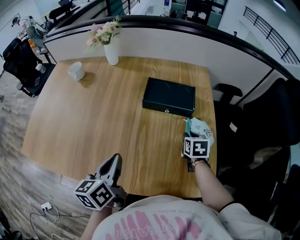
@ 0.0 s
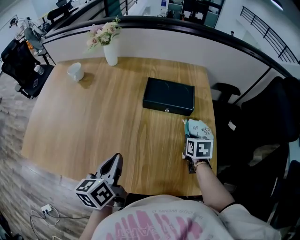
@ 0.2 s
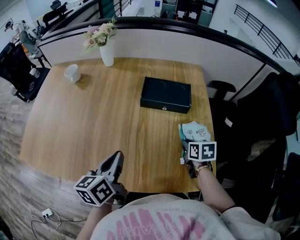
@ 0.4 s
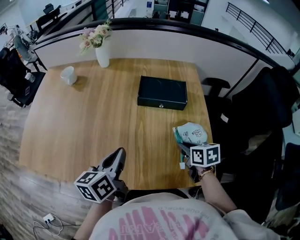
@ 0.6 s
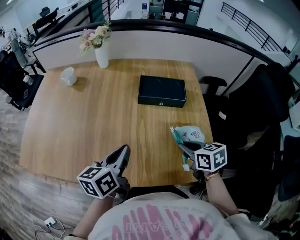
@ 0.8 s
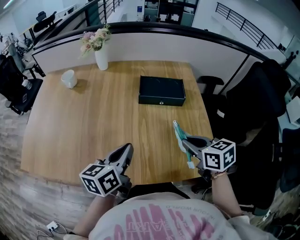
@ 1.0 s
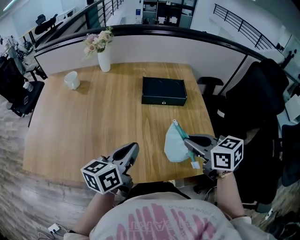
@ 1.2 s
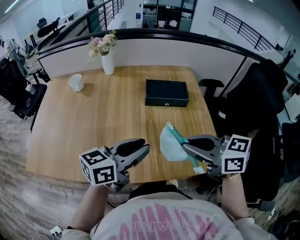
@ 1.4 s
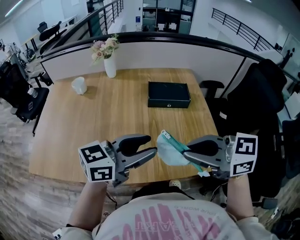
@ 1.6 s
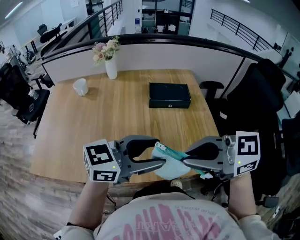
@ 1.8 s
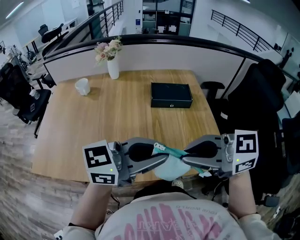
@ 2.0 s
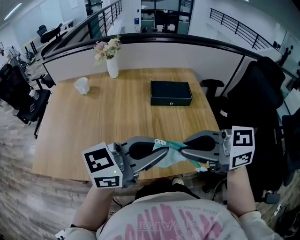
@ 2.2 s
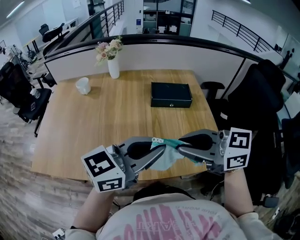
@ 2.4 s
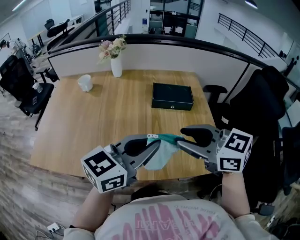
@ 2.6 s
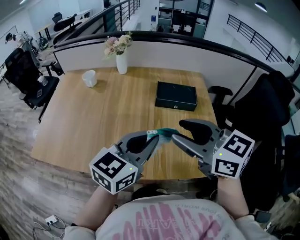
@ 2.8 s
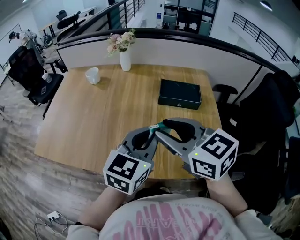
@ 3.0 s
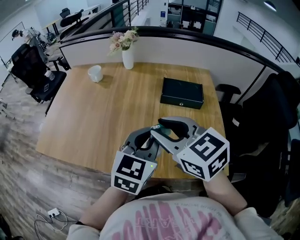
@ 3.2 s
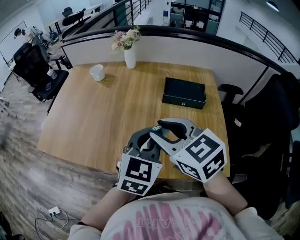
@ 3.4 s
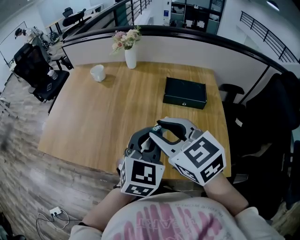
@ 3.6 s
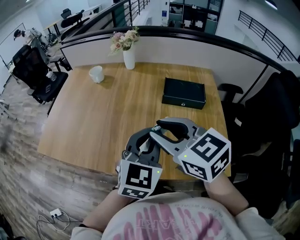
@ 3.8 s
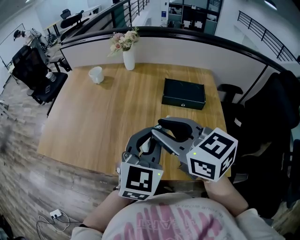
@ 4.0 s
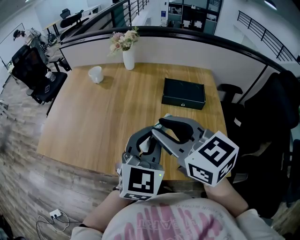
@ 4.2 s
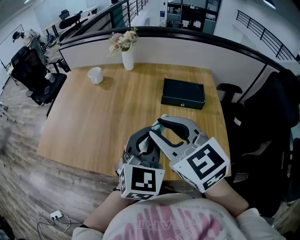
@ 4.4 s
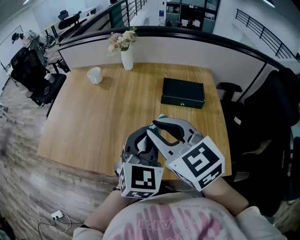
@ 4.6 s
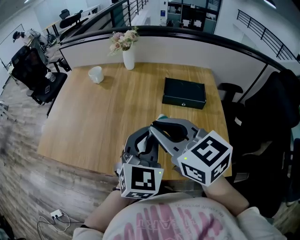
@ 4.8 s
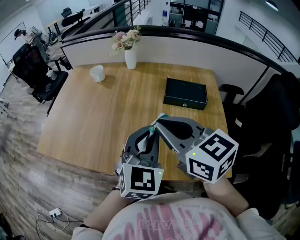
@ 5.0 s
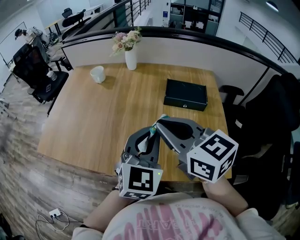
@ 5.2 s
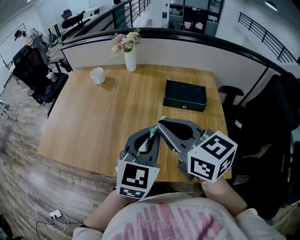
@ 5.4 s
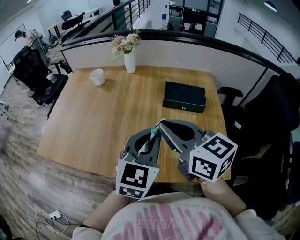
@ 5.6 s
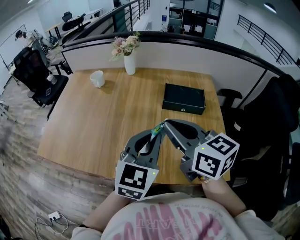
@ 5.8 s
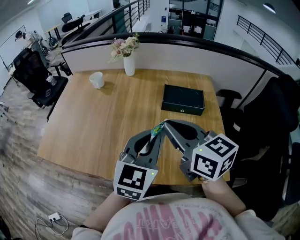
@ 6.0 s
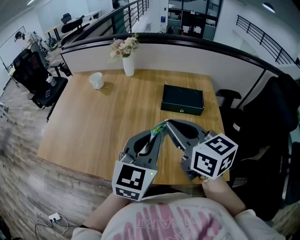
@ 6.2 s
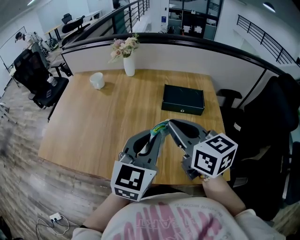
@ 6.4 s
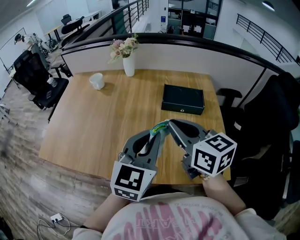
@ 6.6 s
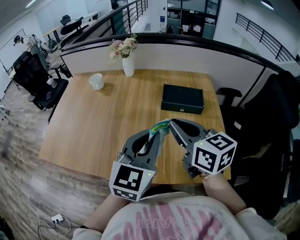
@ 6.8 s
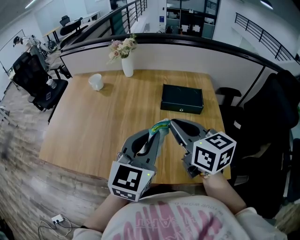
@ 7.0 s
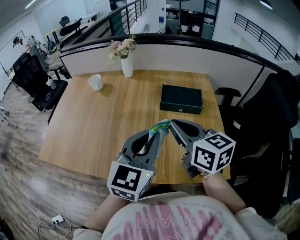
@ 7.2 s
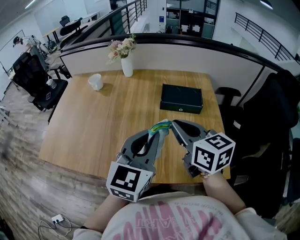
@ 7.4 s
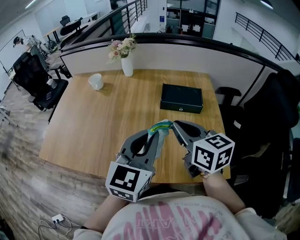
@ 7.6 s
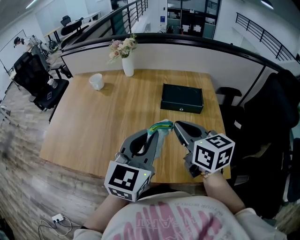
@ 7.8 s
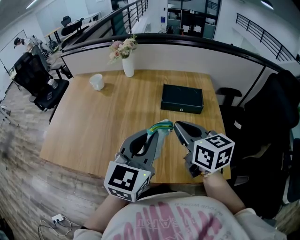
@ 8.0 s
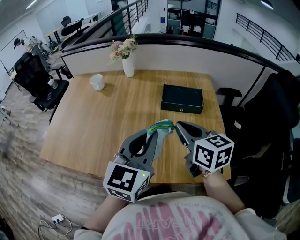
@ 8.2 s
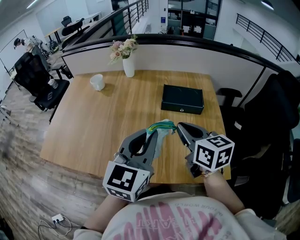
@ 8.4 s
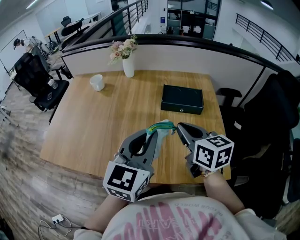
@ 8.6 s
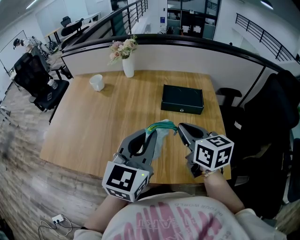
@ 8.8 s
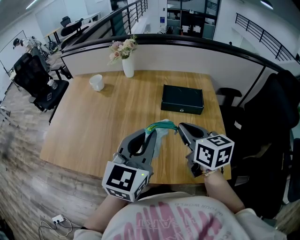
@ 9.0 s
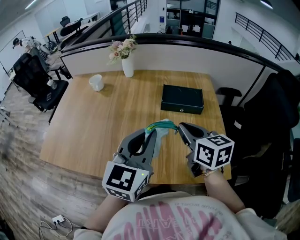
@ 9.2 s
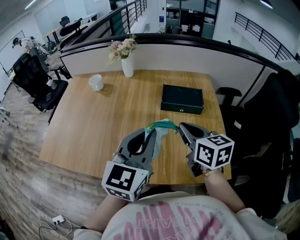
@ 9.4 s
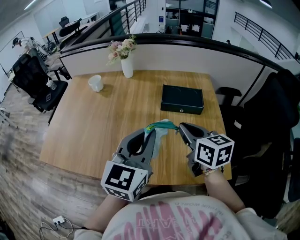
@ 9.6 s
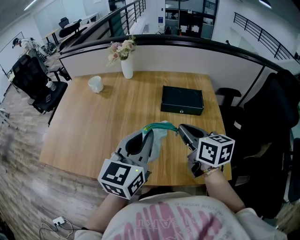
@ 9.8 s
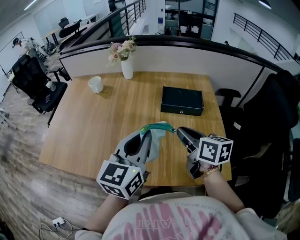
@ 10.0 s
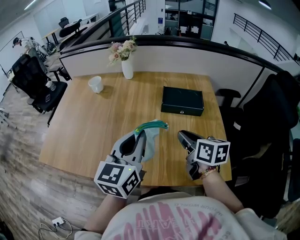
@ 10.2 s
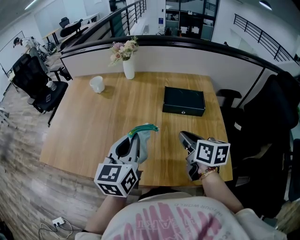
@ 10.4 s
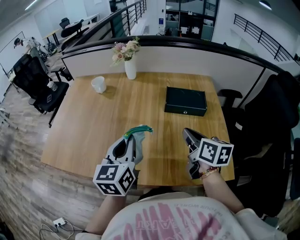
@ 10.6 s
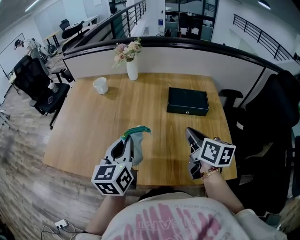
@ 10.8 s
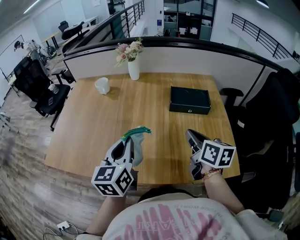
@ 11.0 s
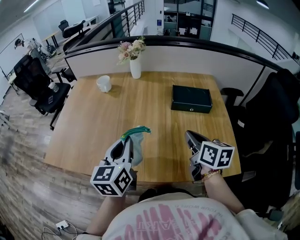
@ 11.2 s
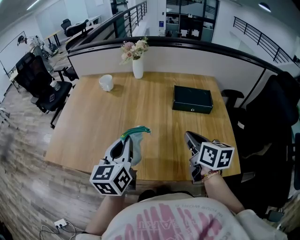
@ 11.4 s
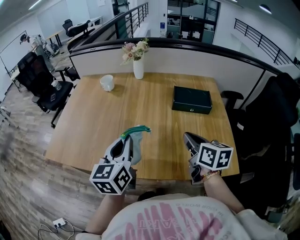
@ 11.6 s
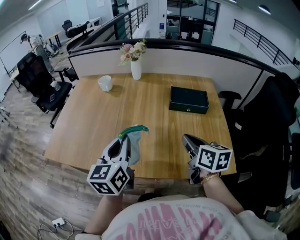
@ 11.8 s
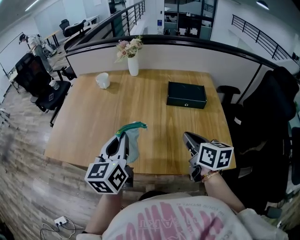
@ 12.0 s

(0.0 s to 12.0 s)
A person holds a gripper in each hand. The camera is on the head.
0.0 s - 1.6 s: The right gripper changes place by about 40 cm, and tilts its fingers some 30 degrees upward, while the left gripper heads upward, covering some 15 cm, turns by approximately 60 degrees, and opens up.
1.6 s - 3.0 s: The right gripper ends up some 10 cm from where it was, and opens its fingers, while the left gripper changes its angle by roughly 40 degrees, and closes up.
3.0 s - 4.4 s: The left gripper changes its angle by approximately 20 degrees.
4.4 s - 6.0 s: The right gripper turns by about 20 degrees, and closes up.
6.0 s - 7.6 s: The right gripper moves roughly 5 cm.
7.6 s - 9.0 s: The grippers move only a little.
9.0 s - 10.4 s: The left gripper heads to the left and downward, covering about 10 cm, while the right gripper is displaced downward by about 5 cm.
10.4 s - 12.0 s: The left gripper is displaced to the left by roughly 10 cm. The right gripper heads backward, covering about 5 cm.

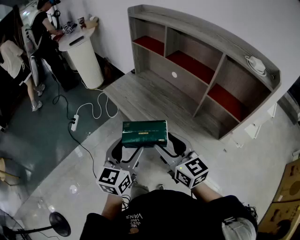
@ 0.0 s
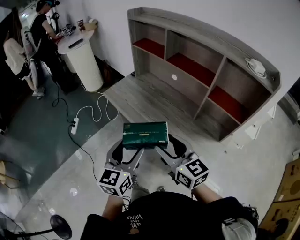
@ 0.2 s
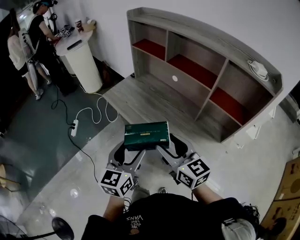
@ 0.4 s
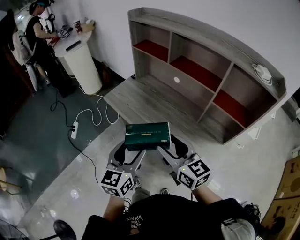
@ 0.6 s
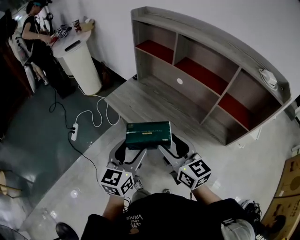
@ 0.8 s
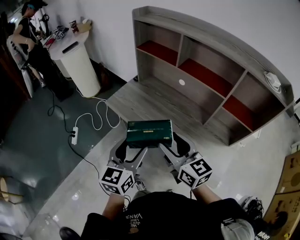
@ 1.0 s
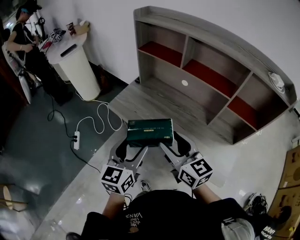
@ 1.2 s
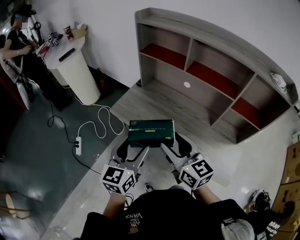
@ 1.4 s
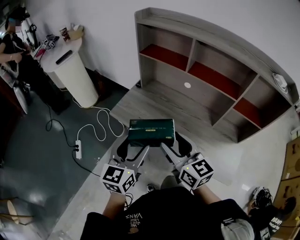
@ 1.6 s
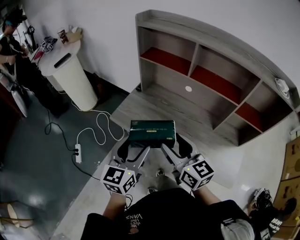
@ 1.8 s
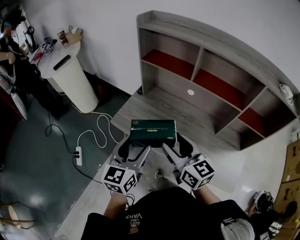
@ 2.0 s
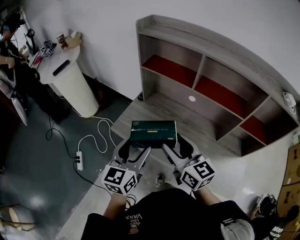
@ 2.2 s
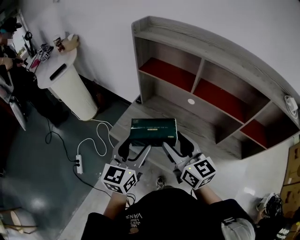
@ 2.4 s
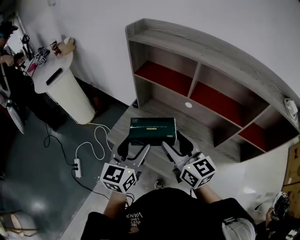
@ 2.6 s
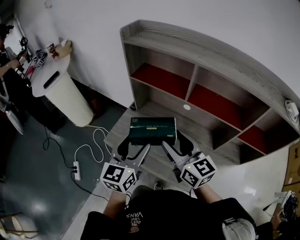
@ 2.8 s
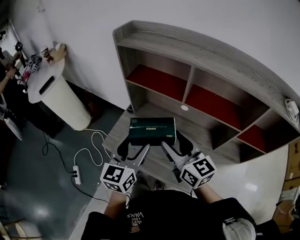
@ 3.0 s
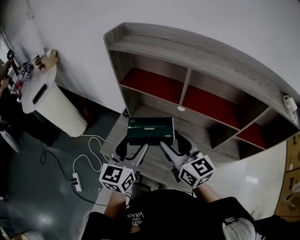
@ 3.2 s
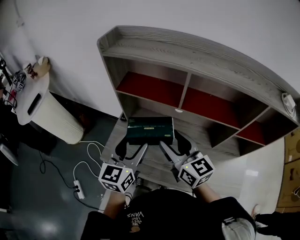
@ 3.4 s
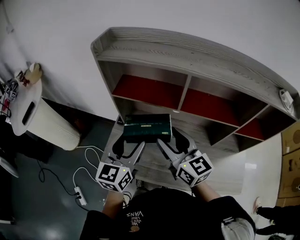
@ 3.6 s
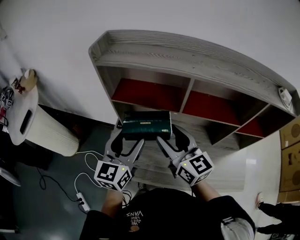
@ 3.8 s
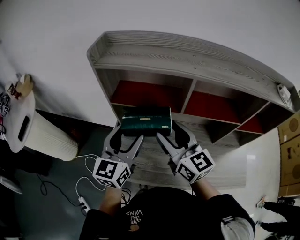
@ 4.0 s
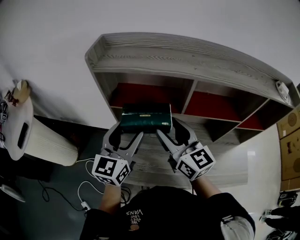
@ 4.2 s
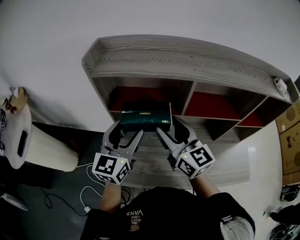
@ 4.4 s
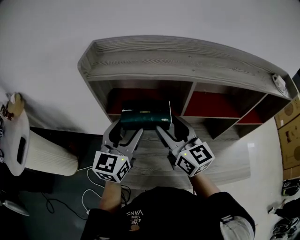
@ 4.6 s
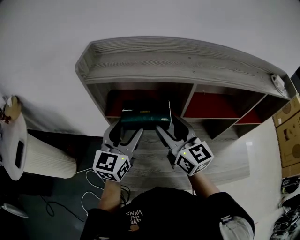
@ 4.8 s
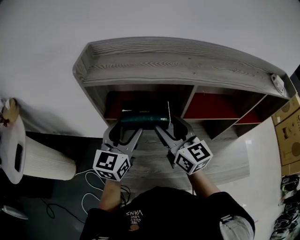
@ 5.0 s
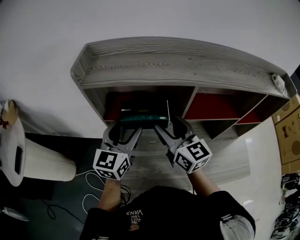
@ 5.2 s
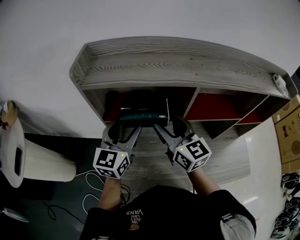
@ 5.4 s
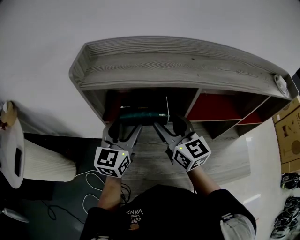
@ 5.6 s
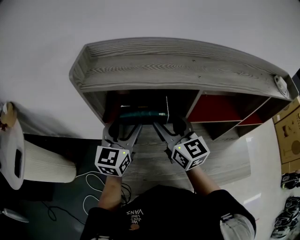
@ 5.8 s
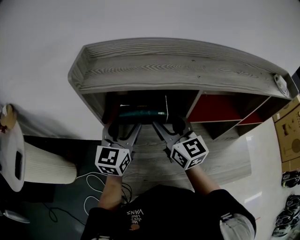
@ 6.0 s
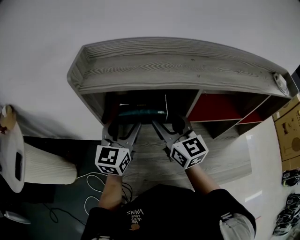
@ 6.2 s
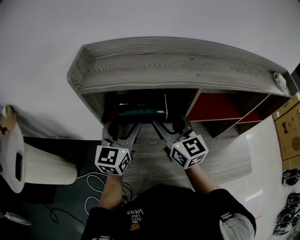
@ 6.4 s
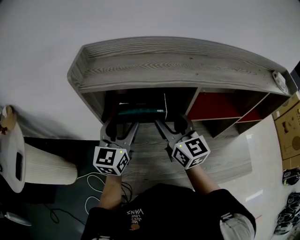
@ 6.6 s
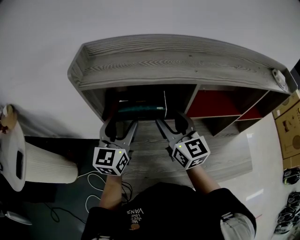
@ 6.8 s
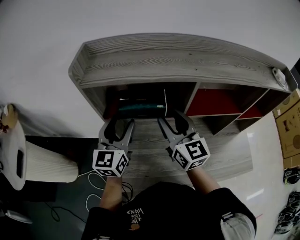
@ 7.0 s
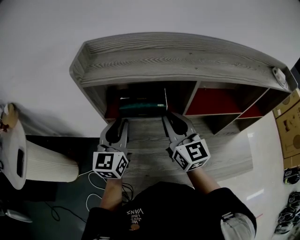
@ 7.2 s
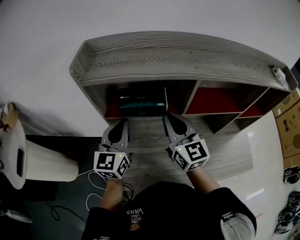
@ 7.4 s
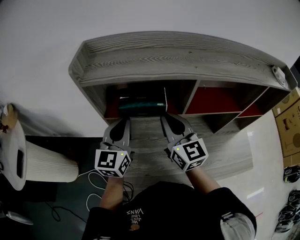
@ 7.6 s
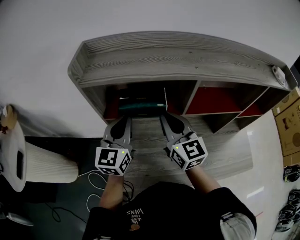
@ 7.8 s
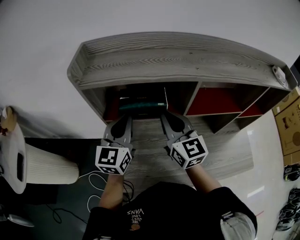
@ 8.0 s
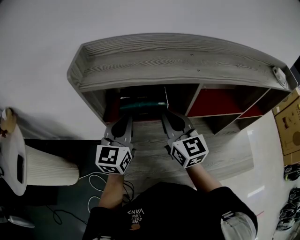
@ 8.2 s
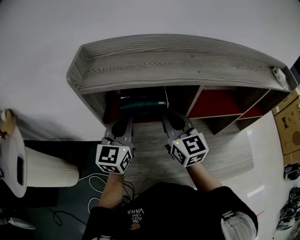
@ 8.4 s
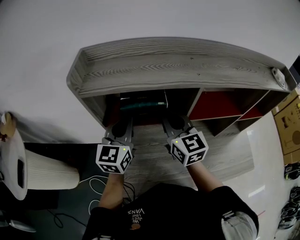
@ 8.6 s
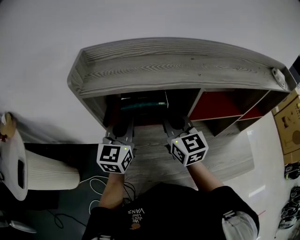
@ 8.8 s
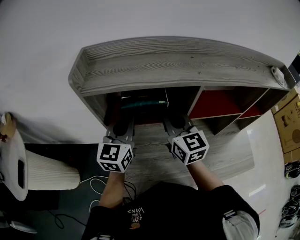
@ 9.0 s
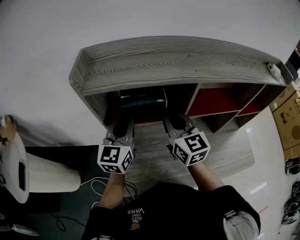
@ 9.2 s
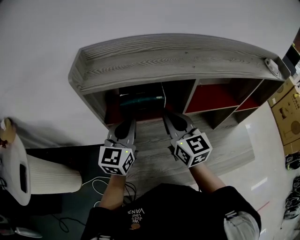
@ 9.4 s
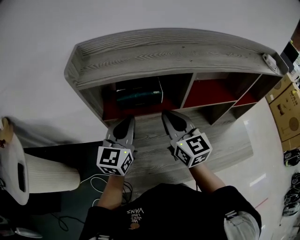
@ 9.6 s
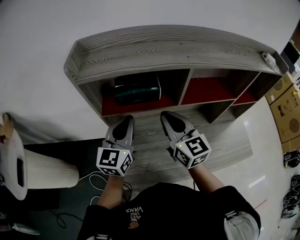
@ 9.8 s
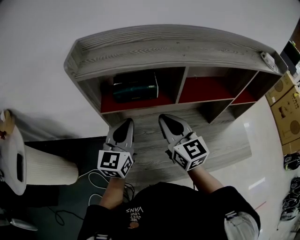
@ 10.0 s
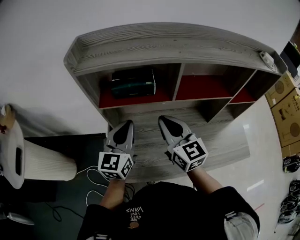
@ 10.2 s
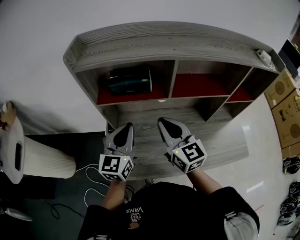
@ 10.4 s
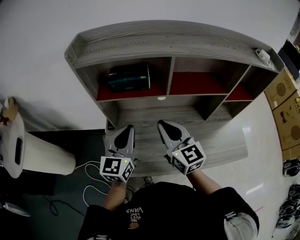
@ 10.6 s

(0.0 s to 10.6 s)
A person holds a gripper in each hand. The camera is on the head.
0.0 s - 1.6 s: The two grippers go roughly 25 cm forward and to the left.
1.6 s - 3.0 s: The grippers both shift forward by roughly 20 cm.
3.0 s - 4.6 s: Both grippers move forward, some 15 cm. The left gripper swivels approximately 30 degrees. Meanwhile the right gripper turns by some 30 degrees.
4.6 s - 6.0 s: Both grippers travel together forward, approximately 5 cm.
6.0 s - 7.6 s: The right gripper closes its fingers, while the left gripper closes up.
7.6 s - 9.0 s: The grippers stay close to where they were, moving slightly.
9.0 s - 10.6 s: Both grippers move backward, approximately 15 cm.

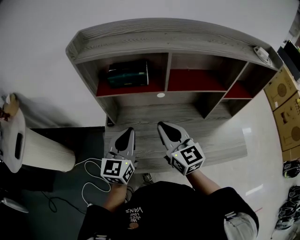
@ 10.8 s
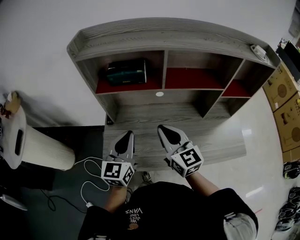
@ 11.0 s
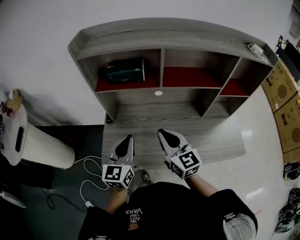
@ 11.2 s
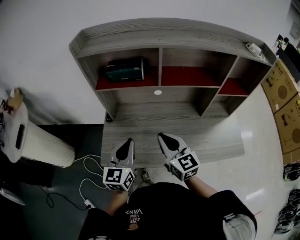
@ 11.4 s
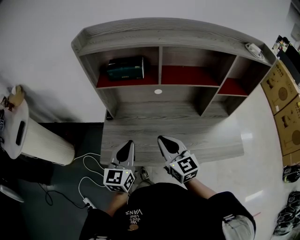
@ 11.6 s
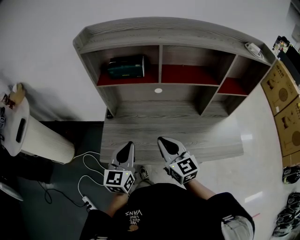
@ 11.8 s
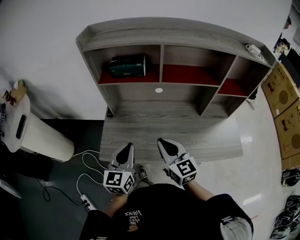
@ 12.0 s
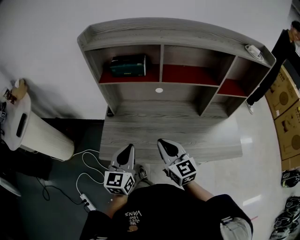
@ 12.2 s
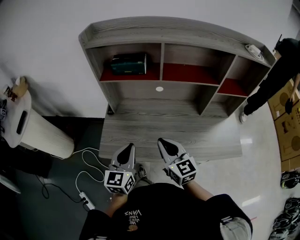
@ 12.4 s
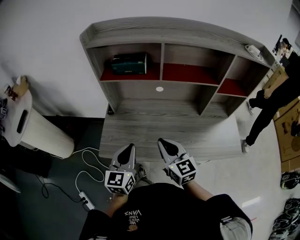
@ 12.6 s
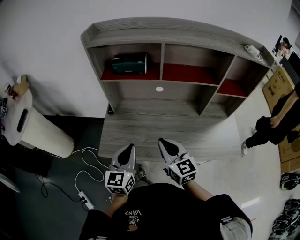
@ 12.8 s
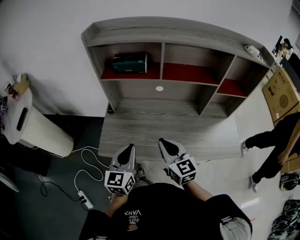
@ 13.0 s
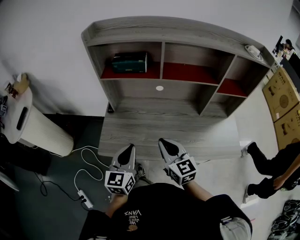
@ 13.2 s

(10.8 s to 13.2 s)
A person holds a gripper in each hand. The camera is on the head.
10.8 s - 12.0 s: Both grippers move backward and downward, roughly 15 cm.
12.0 s - 13.2 s: The grippers move only a little.
